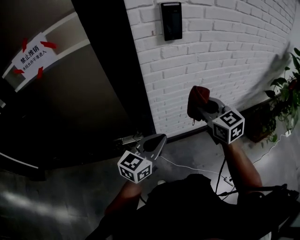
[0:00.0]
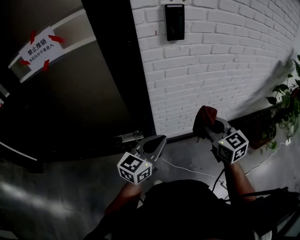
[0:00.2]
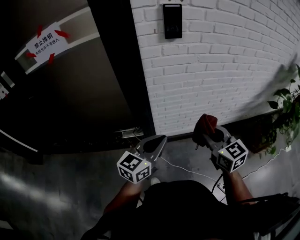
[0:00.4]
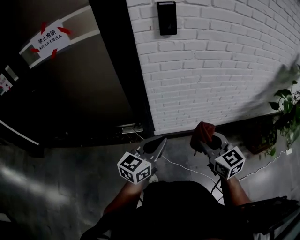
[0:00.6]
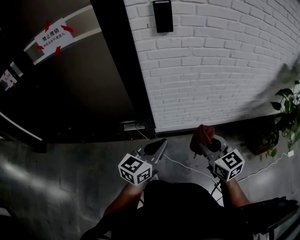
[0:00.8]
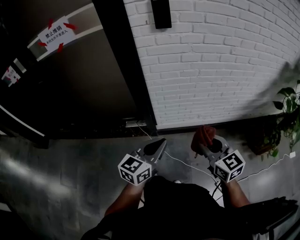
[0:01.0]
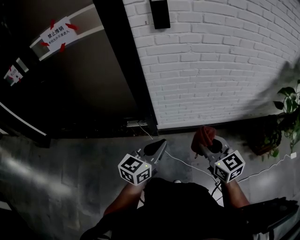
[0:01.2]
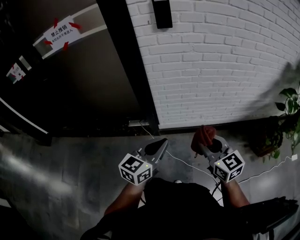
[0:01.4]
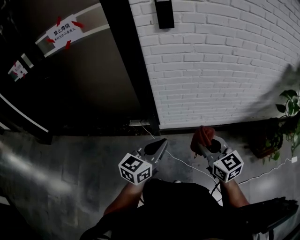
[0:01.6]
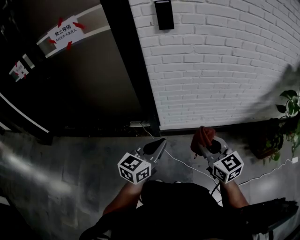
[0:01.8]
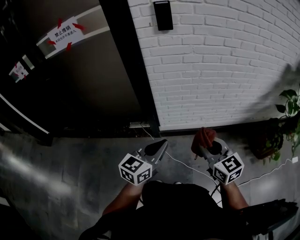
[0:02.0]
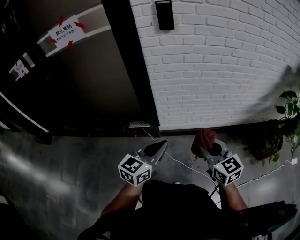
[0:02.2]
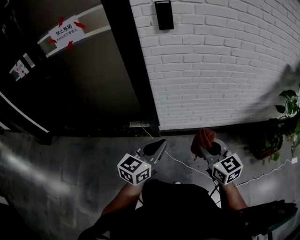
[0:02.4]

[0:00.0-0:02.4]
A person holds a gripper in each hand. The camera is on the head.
0.0 to 1.2 s: The grippers both shift backward and to the right by some 20 cm.
1.2 to 2.4 s: The grippers stay close to where they were, moving slightly.

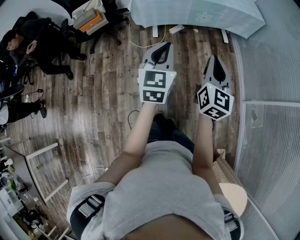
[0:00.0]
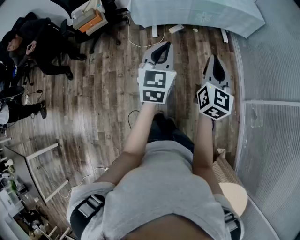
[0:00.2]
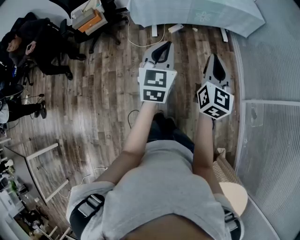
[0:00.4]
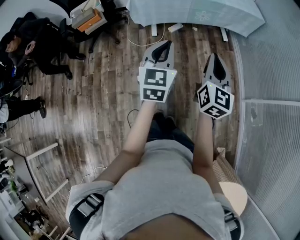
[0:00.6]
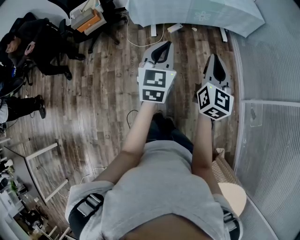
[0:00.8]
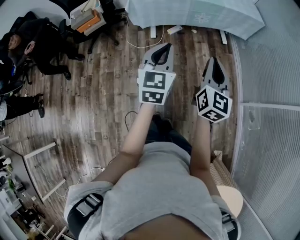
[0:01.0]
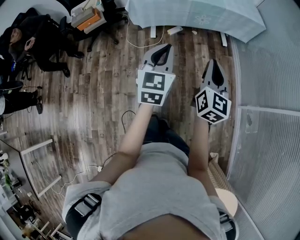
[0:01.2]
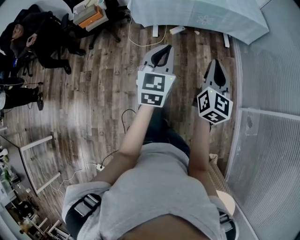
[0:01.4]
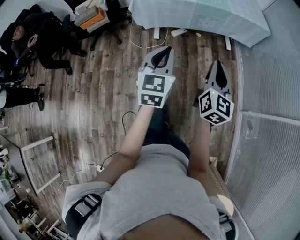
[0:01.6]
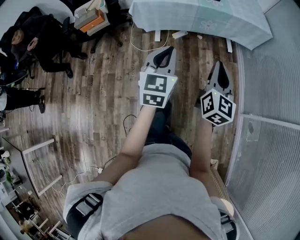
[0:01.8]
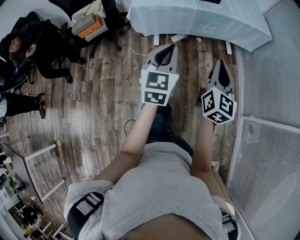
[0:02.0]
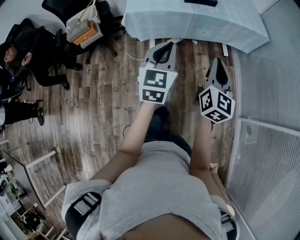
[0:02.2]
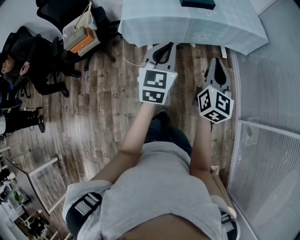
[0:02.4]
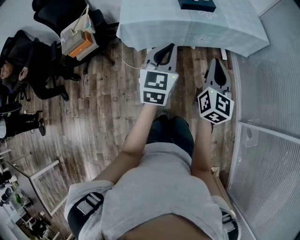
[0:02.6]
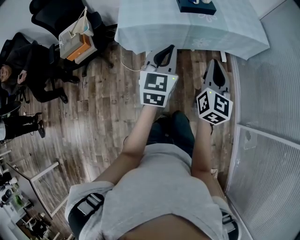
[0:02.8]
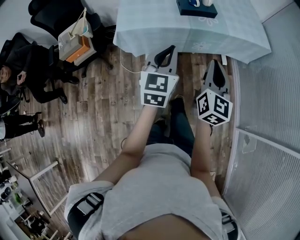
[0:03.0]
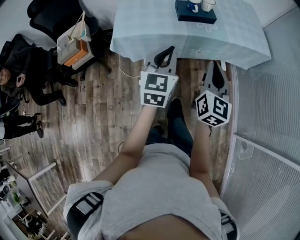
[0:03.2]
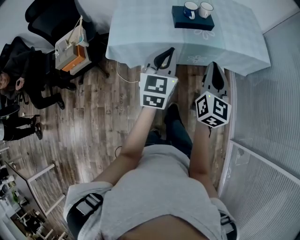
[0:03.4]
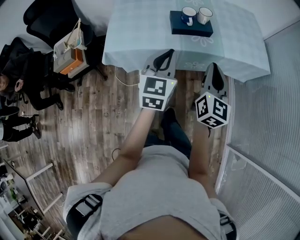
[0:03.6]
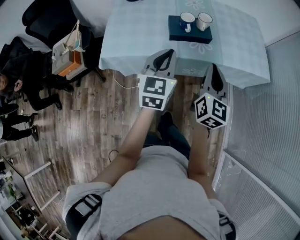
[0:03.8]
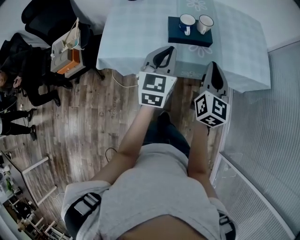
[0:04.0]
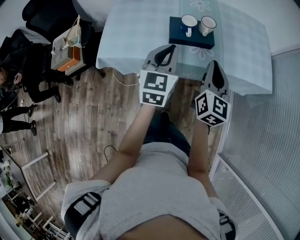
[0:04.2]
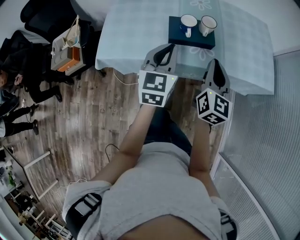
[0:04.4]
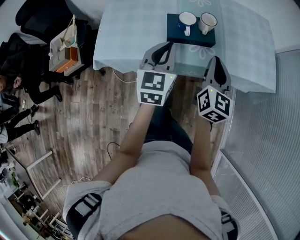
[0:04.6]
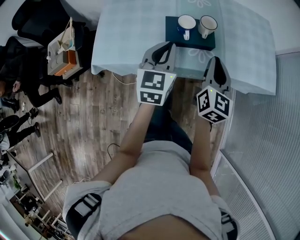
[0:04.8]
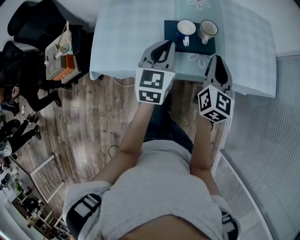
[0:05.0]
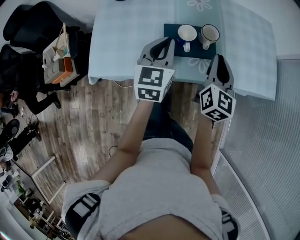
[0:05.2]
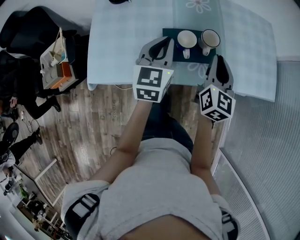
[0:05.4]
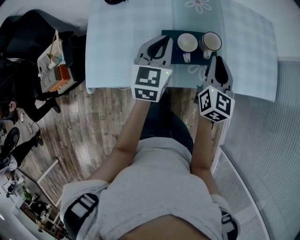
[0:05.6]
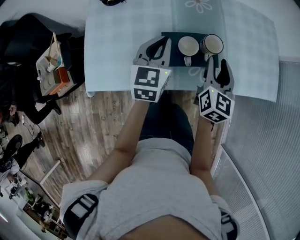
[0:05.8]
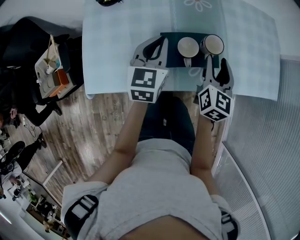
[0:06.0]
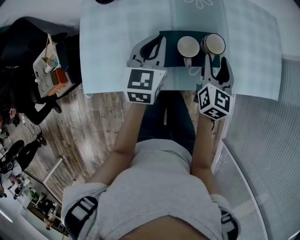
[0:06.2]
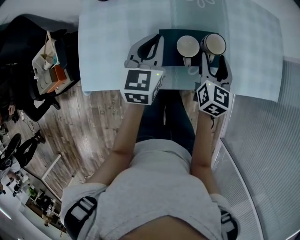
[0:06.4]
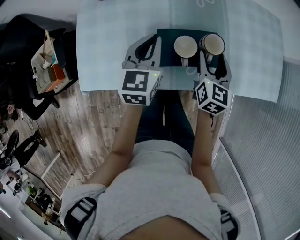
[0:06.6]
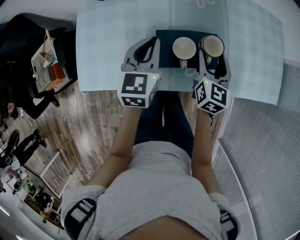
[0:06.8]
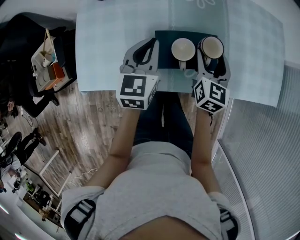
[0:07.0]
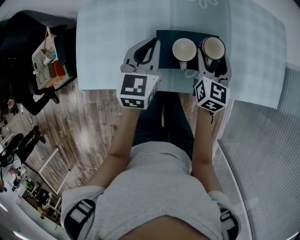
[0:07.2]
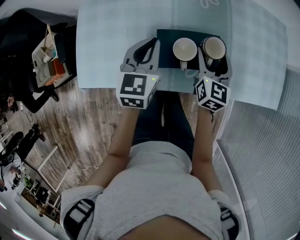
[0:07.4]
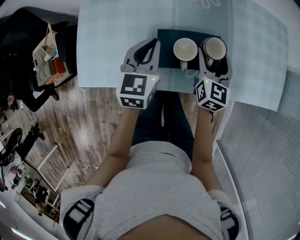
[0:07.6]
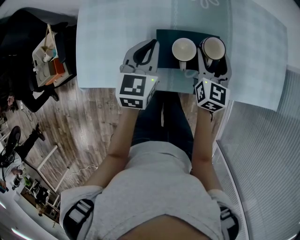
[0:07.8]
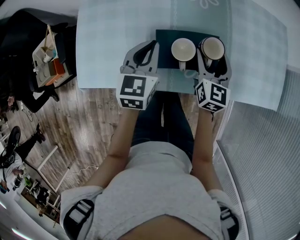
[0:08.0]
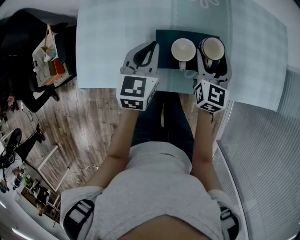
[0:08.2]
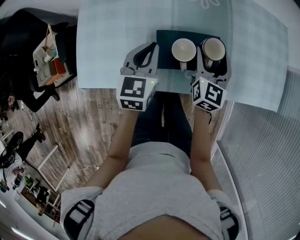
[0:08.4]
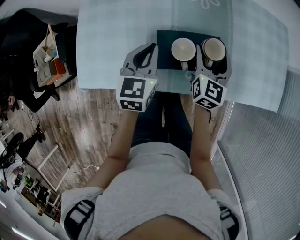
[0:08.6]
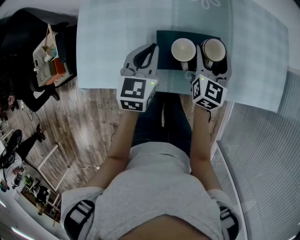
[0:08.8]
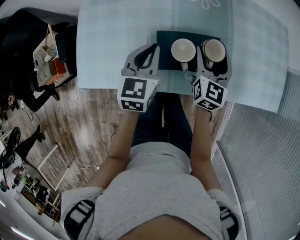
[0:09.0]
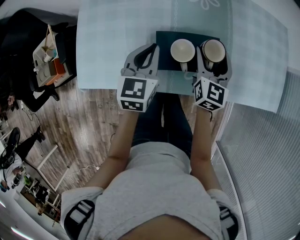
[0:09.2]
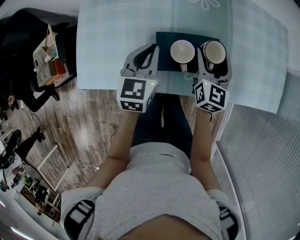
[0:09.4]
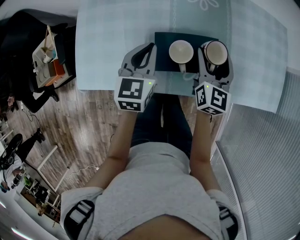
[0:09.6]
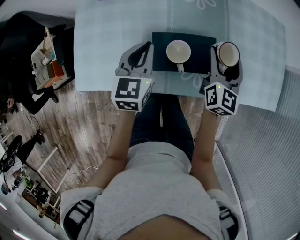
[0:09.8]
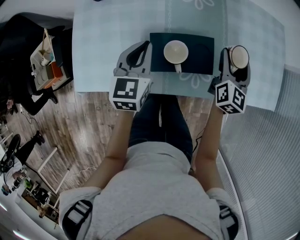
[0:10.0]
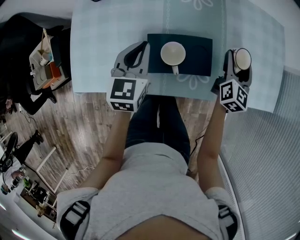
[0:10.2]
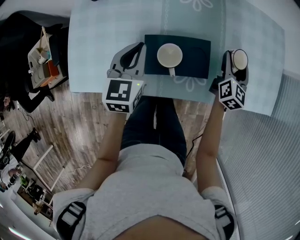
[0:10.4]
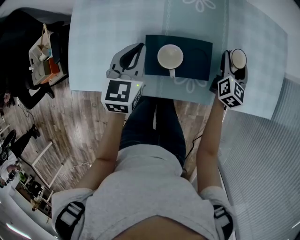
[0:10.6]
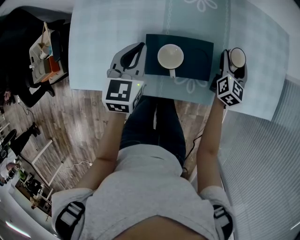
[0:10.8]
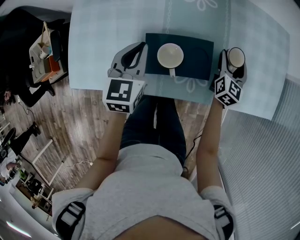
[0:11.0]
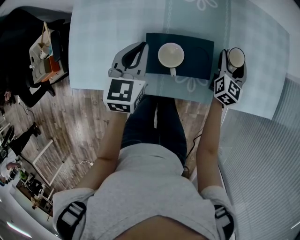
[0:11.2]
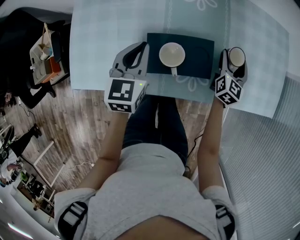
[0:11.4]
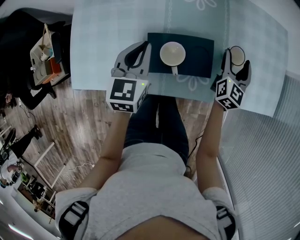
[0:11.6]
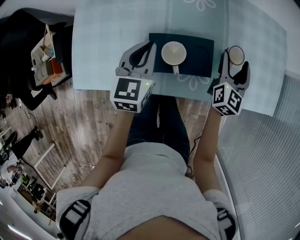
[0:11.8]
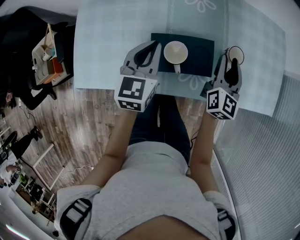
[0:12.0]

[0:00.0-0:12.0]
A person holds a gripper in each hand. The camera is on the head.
0.0 to 1.6 s: The left gripper moves roughly 5 cm. The right gripper heads forward, covering some 5 cm.
1.6 to 3.0 s: Both grippers move forward, roughly 30 cm.
3.0 to 4.4 s: Both grippers move forward, roughly 30 cm.
4.4 to 6.0 s: The left gripper shifts approximately 20 cm forward; the right gripper shifts some 20 cm forward and downward, and opens.
6.0 to 7.6 s: The right gripper travels downward and forward by about 10 cm, and opens up.
7.6 to 9.0 s: The grippers stay close to where they were, moving slightly.
9.0 to 10.4 s: The right gripper travels to the right by roughly 15 cm.
10.4 to 12.0 s: The right gripper travels upward and to the left by approximately 10 cm, and closes its fingers.

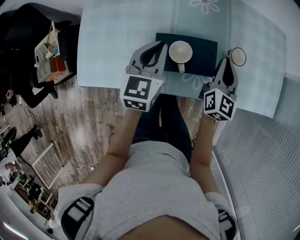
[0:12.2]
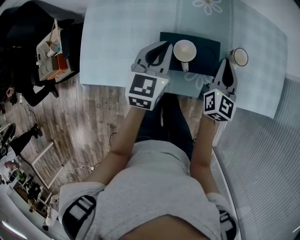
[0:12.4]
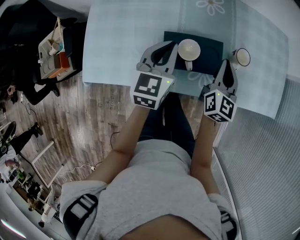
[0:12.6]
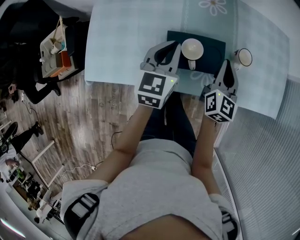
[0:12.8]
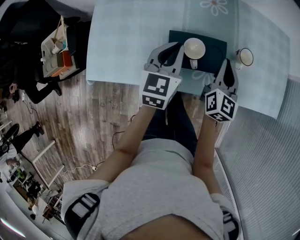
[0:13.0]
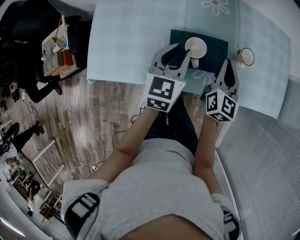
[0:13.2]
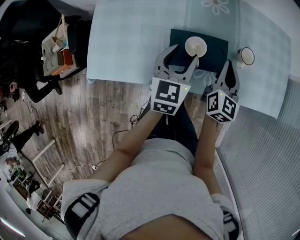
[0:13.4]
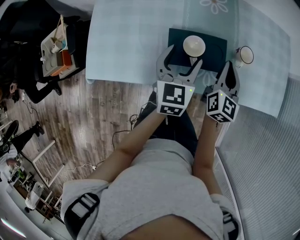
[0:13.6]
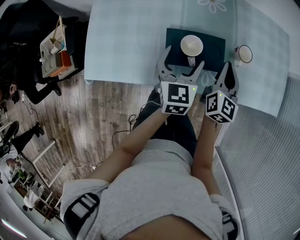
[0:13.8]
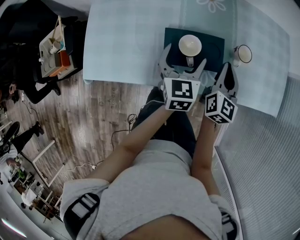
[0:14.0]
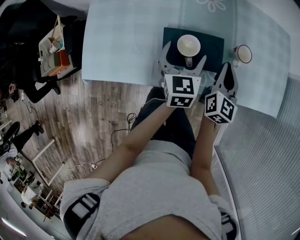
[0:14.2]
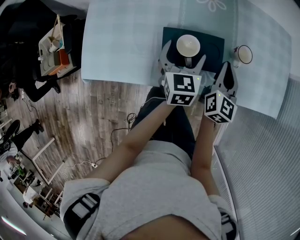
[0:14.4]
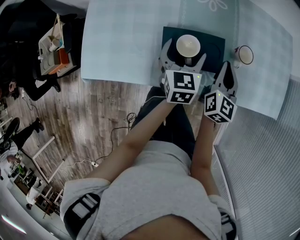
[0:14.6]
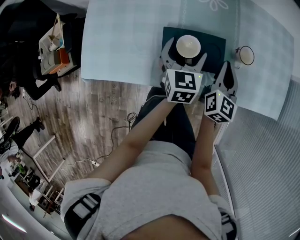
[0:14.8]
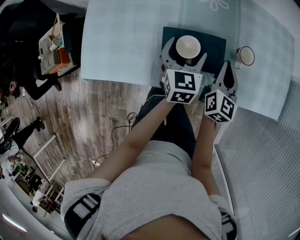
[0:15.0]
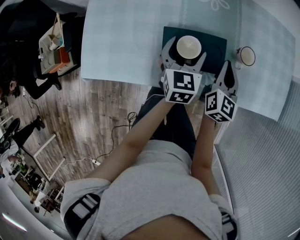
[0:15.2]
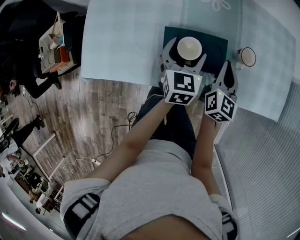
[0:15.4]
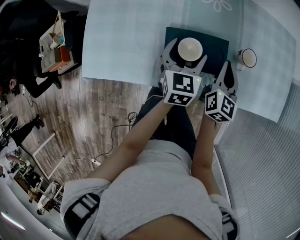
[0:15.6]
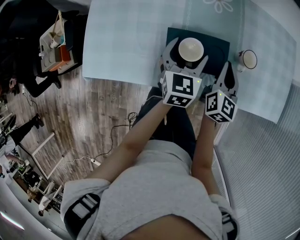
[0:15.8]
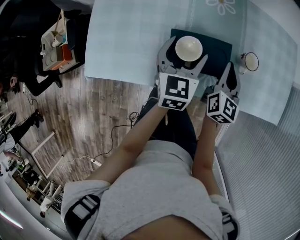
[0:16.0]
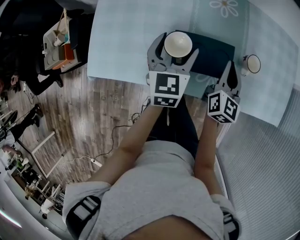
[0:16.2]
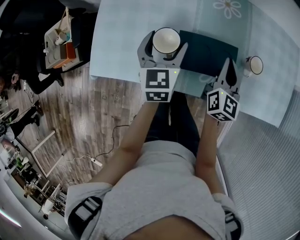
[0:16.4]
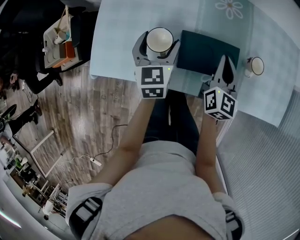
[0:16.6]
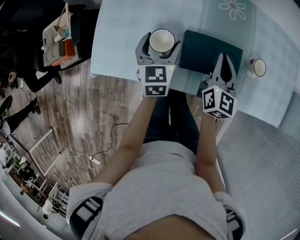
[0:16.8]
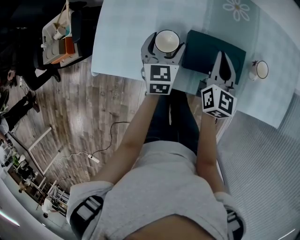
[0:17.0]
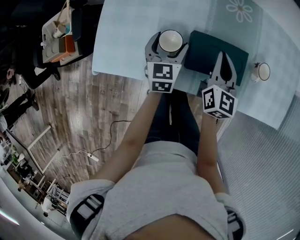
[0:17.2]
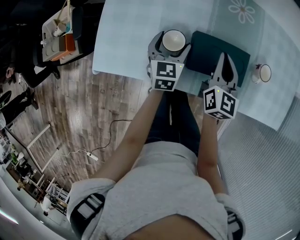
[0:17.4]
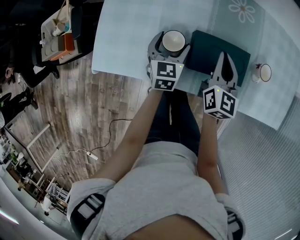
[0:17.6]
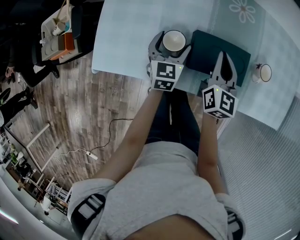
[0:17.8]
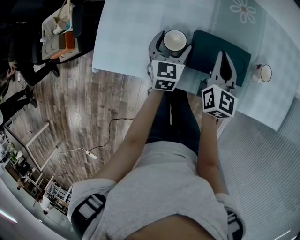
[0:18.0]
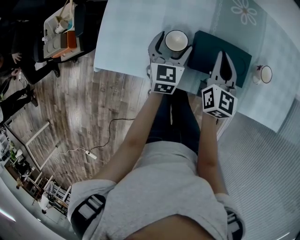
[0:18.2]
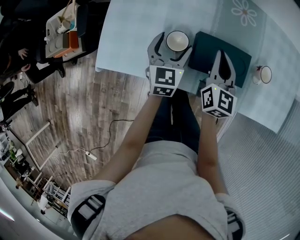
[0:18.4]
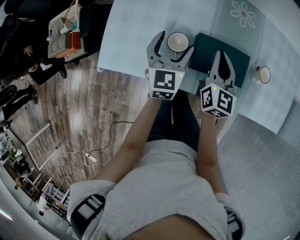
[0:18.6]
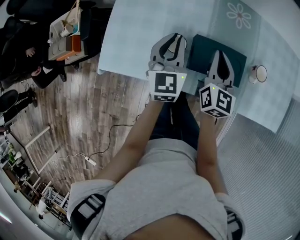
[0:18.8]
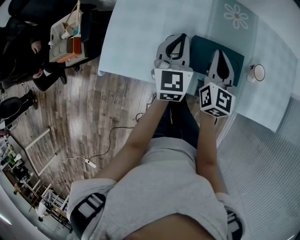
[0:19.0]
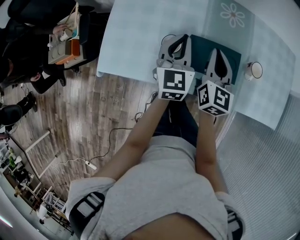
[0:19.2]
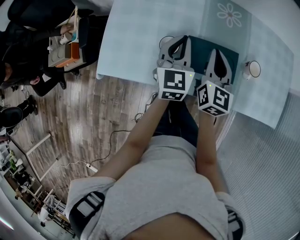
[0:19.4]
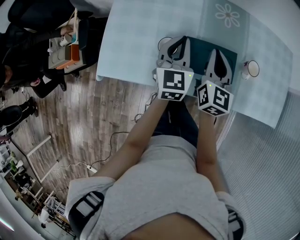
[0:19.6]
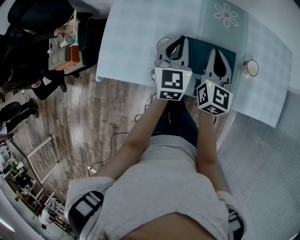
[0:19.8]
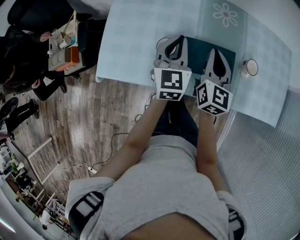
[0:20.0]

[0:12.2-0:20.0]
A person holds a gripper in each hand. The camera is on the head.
12.2 to 13.8 s: The left gripper travels to the right by roughly 5 cm, and opens.
13.8 to 15.4 s: The left gripper changes place by some 5 cm.
15.4 to 16.8 s: The grippers both shift to the left by approximately 15 cm.
16.8 to 18.4 s: The right gripper is displaced to the left by about 5 cm.
18.4 to 20.0 s: The right gripper is displaced upward by roughly 5 cm, while the left gripper goes some 10 cm upward, and closes up.

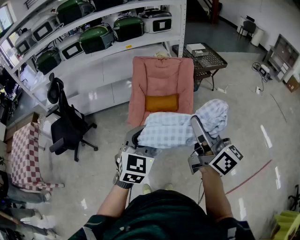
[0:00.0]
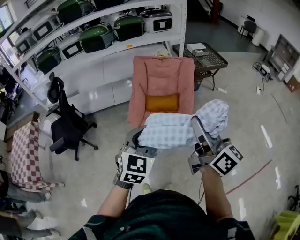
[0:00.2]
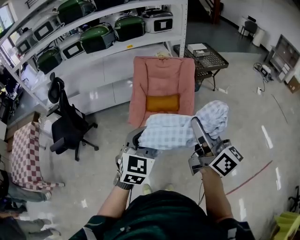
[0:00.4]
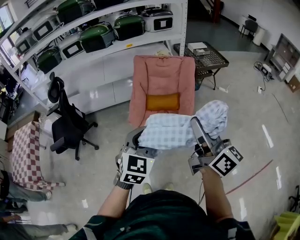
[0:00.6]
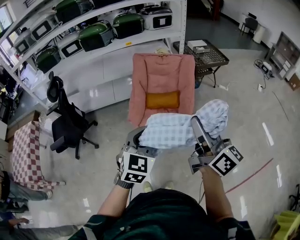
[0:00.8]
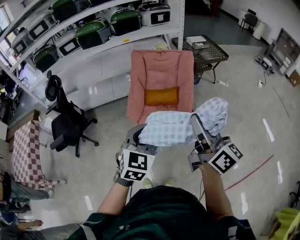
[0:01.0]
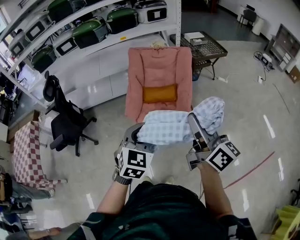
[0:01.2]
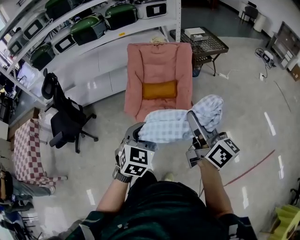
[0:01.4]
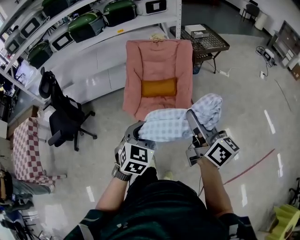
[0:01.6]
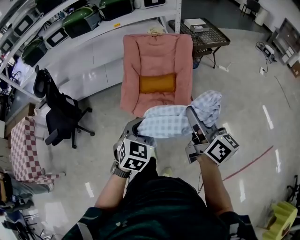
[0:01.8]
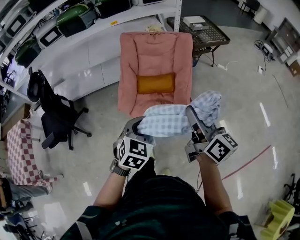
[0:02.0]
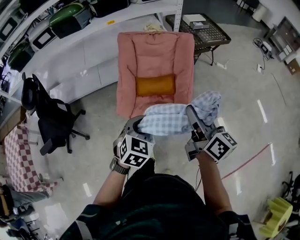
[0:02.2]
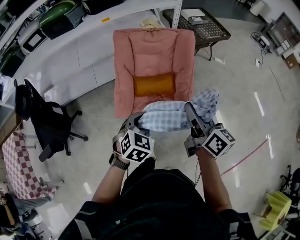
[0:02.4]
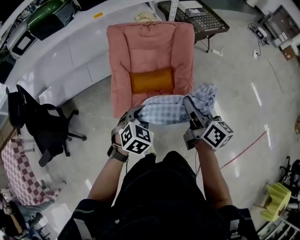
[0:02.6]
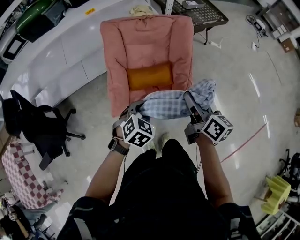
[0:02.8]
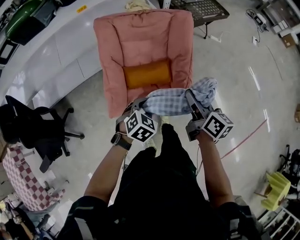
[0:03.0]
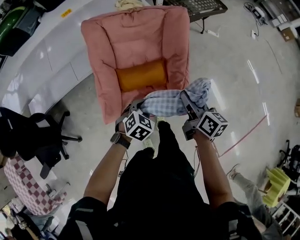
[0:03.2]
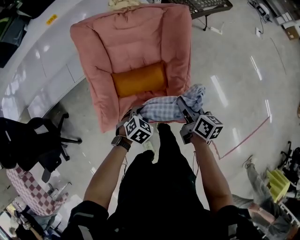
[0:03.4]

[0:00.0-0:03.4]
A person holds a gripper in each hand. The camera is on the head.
0.0 to 1.6 s: The grippers both shift downward by about 10 cm.
1.6 to 3.4 s: Both grippers travel together forward and downward, some 50 cm. The left gripper turns by roughly 40 degrees. Meanwhile the right gripper points its fingers approximately 30 degrees further downward.
